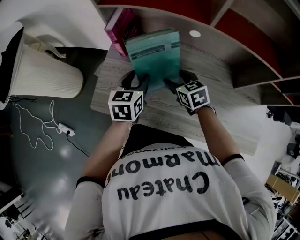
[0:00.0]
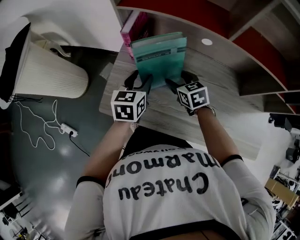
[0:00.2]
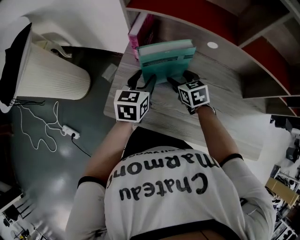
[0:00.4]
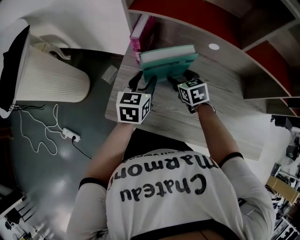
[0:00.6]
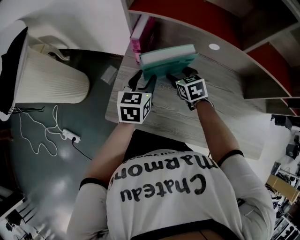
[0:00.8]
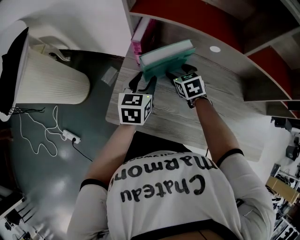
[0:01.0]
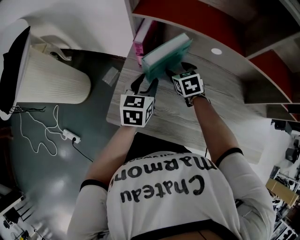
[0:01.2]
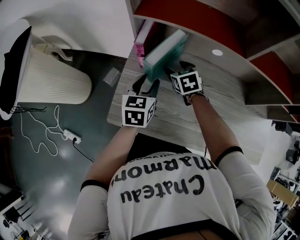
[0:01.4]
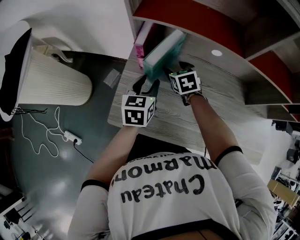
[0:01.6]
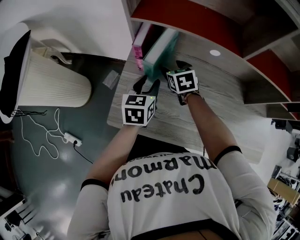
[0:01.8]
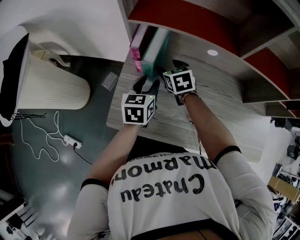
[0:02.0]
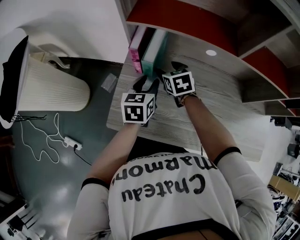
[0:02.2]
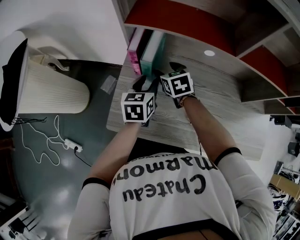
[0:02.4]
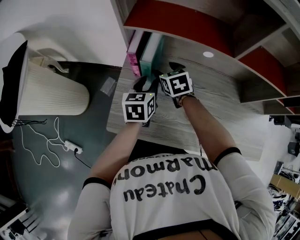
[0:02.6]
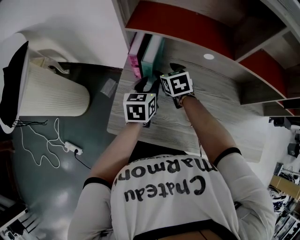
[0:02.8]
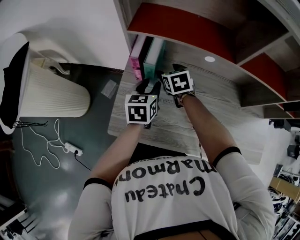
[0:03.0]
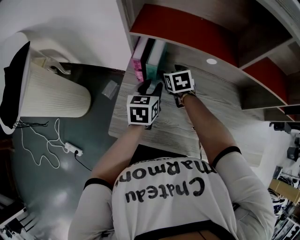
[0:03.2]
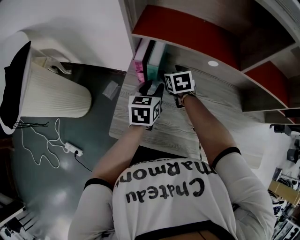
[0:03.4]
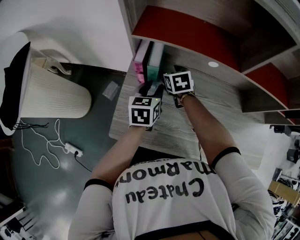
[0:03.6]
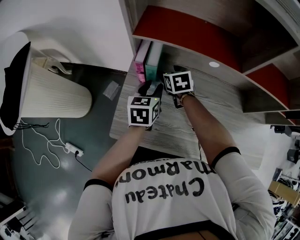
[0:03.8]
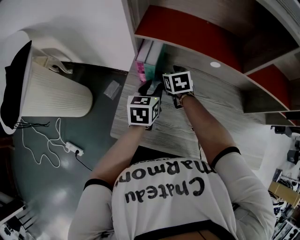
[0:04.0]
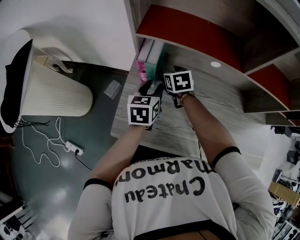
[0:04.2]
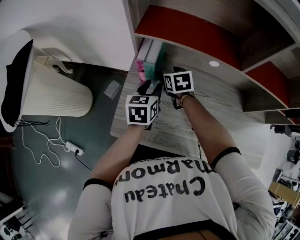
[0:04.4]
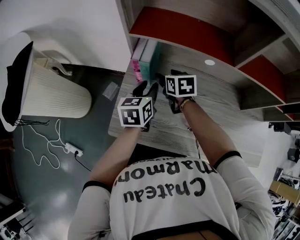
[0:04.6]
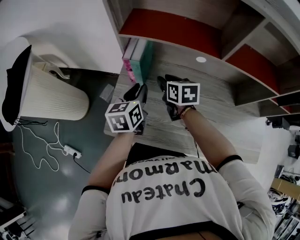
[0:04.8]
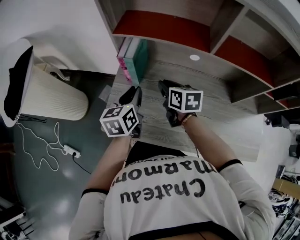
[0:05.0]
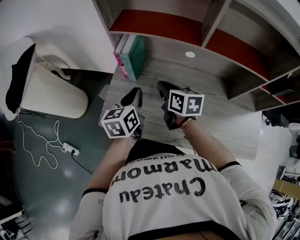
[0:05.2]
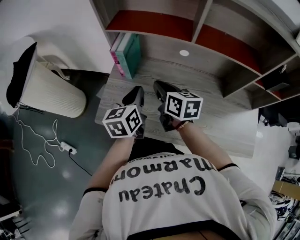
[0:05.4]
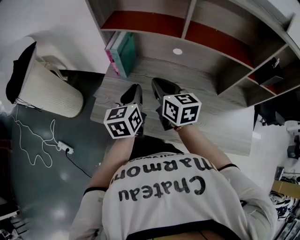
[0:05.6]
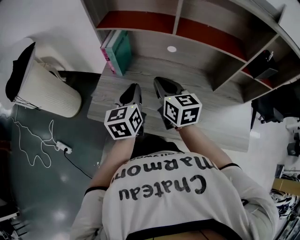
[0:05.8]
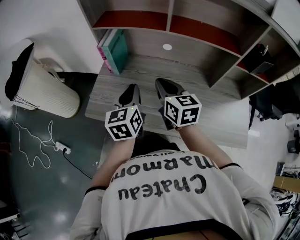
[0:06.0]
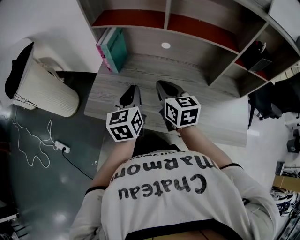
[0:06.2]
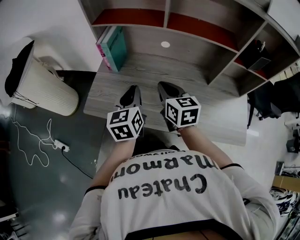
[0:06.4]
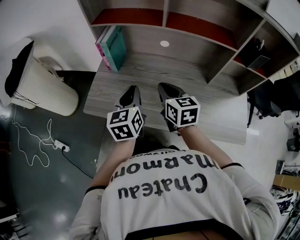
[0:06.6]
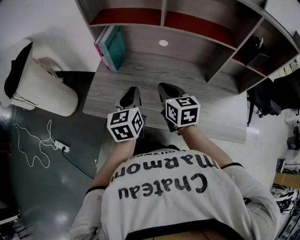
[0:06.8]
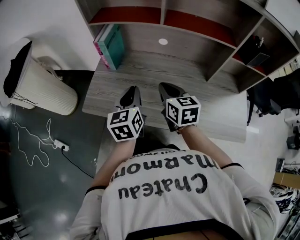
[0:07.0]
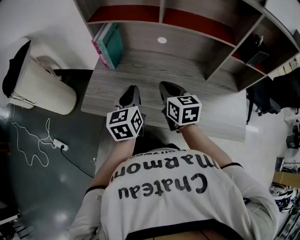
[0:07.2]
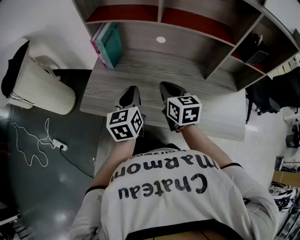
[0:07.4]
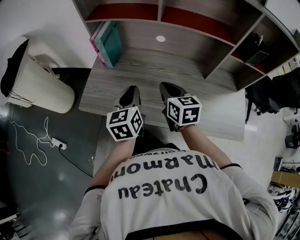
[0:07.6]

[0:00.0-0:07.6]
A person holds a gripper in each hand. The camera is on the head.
0:00.0 to 0:01.6: The right gripper moves forward and to the left, about 15 cm. The left gripper moves forward and to the left, roughly 10 cm.
0:01.6 to 0:04.6: The grippers stay close to where they were, moving slightly.
0:04.6 to 0:06.0: The grippers both shift backward, upward and to the right by approximately 25 cm. The left gripper closes up; the right gripper turns by approximately 30 degrees, and closes.
0:06.0 to 0:07.6: The left gripper moves approximately 5 cm. The right gripper shifts some 5 cm downward.

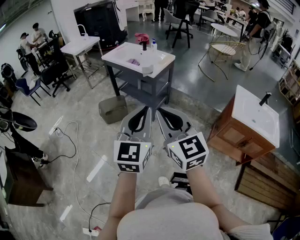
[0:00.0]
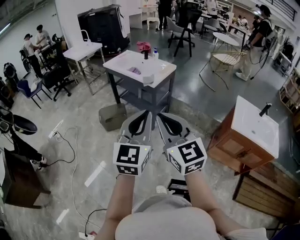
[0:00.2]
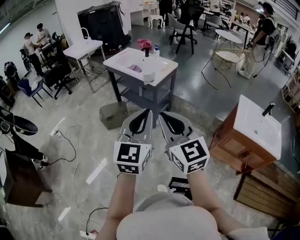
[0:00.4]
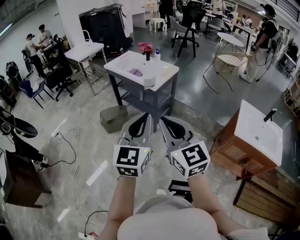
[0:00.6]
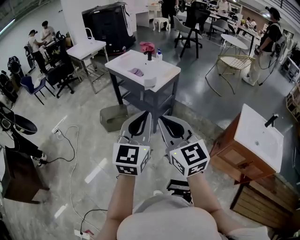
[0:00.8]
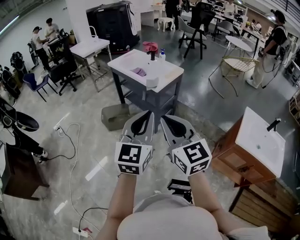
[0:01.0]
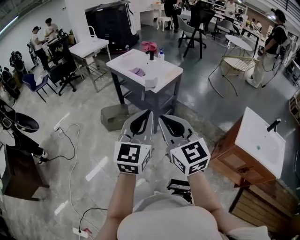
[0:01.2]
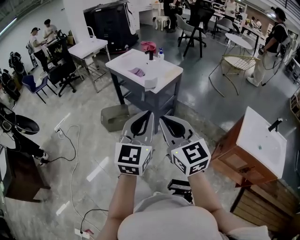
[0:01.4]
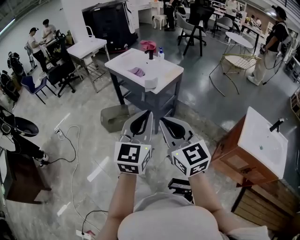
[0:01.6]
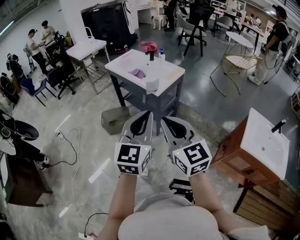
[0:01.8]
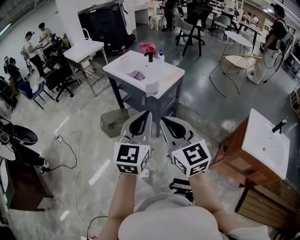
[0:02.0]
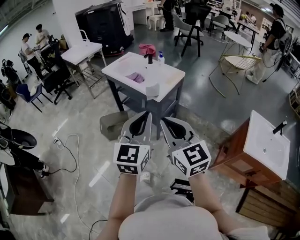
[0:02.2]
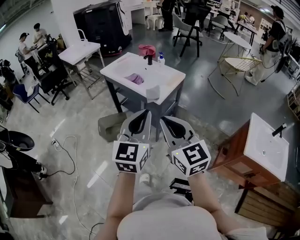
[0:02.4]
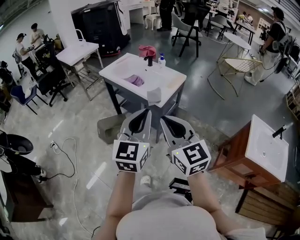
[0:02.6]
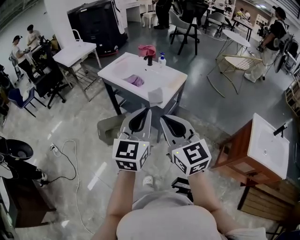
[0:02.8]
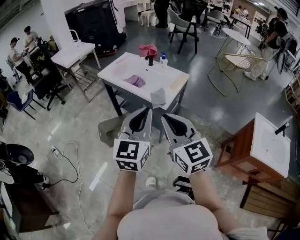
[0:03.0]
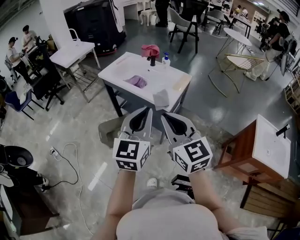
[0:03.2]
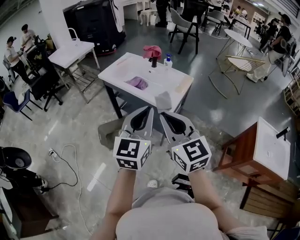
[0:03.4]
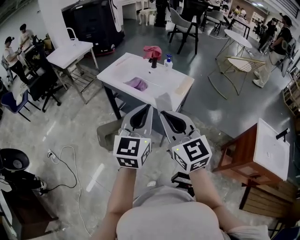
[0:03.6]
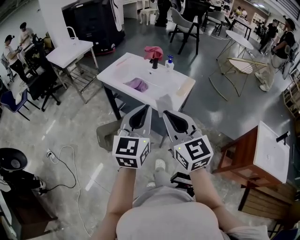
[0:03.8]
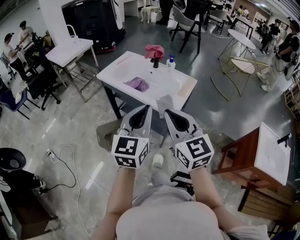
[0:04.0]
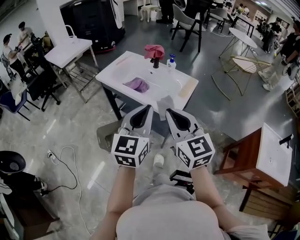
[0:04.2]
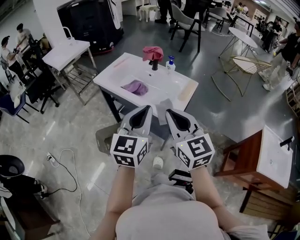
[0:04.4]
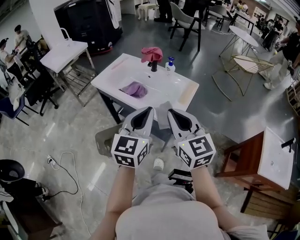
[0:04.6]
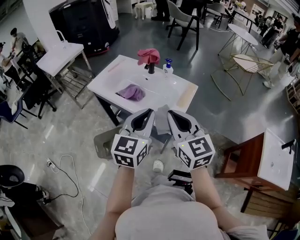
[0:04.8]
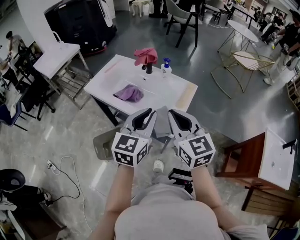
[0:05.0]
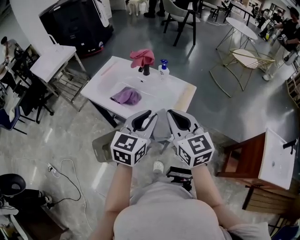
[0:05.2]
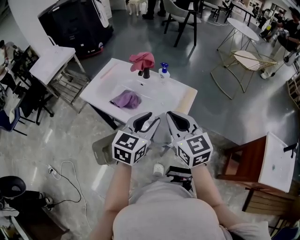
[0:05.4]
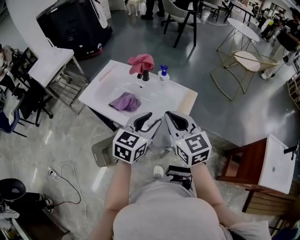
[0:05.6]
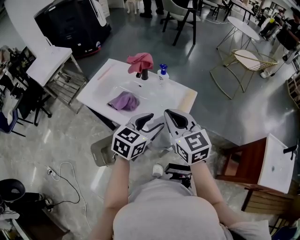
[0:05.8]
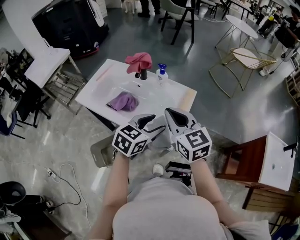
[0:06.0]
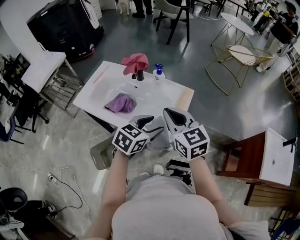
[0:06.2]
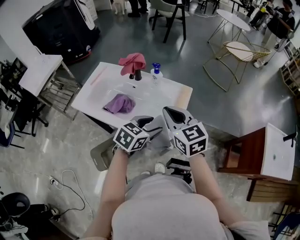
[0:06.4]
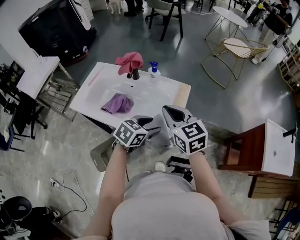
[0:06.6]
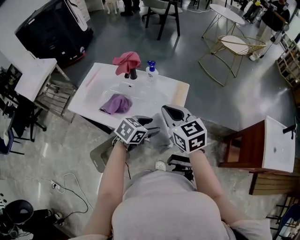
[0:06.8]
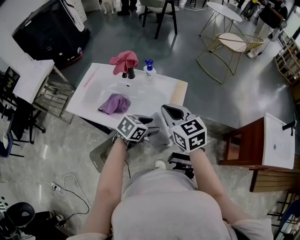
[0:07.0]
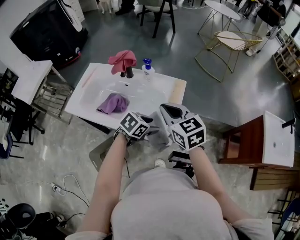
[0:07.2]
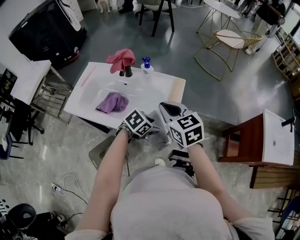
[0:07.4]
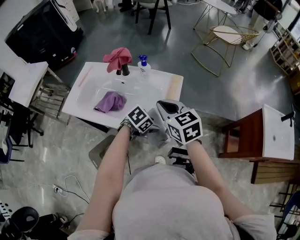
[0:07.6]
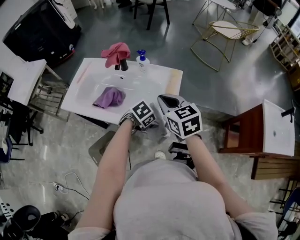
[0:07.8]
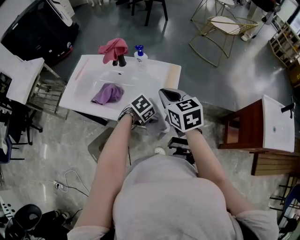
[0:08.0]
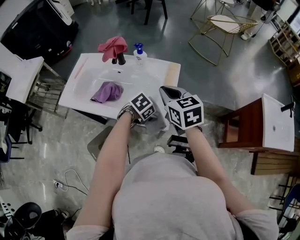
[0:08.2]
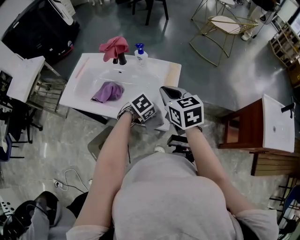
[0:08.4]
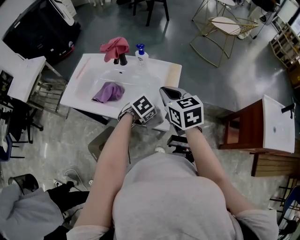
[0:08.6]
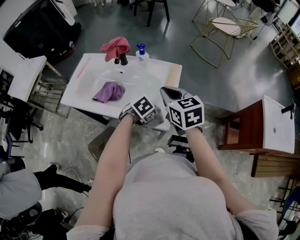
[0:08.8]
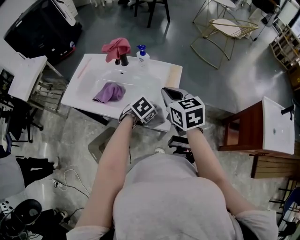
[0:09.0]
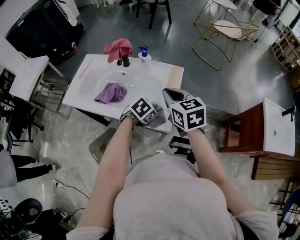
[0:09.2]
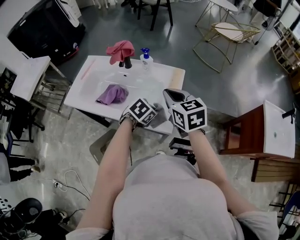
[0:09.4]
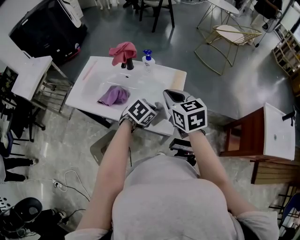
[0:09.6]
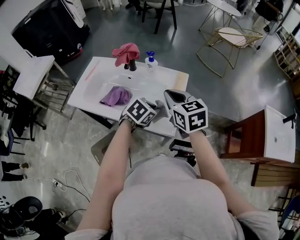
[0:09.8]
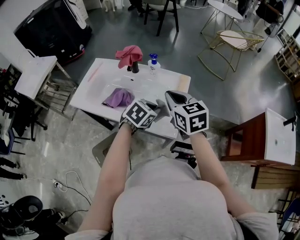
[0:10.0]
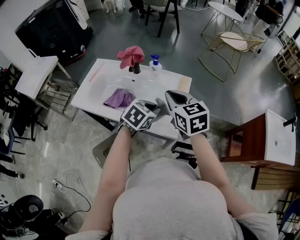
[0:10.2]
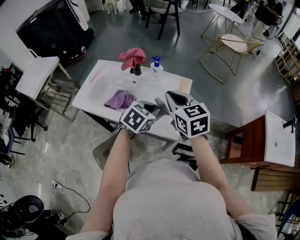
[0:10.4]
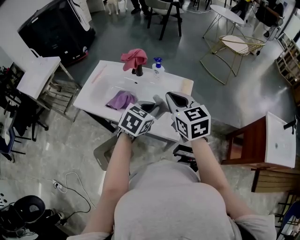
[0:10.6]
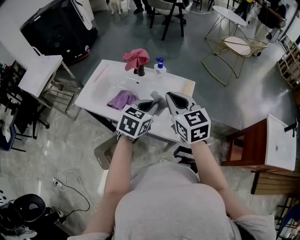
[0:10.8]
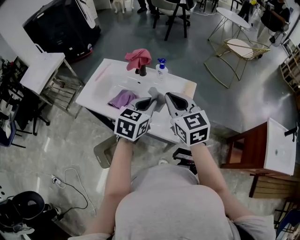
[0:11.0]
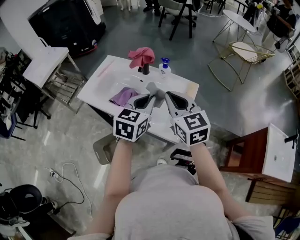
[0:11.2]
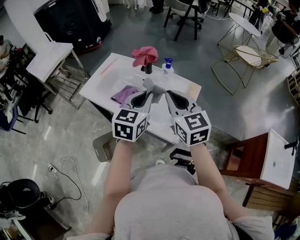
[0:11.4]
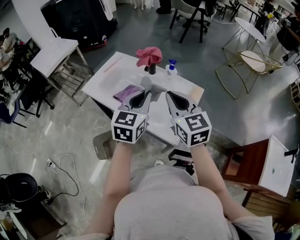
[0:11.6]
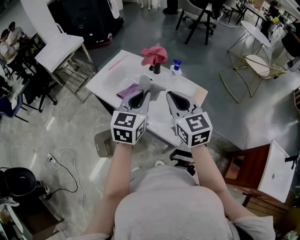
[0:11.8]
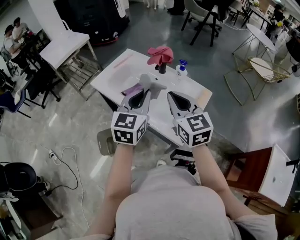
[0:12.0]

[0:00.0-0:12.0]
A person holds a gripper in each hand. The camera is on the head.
0:00.0 to 0:01.6: Both grippers travel together forward and to the right, some 15 cm.
0:01.6 to 0:03.0: The grippers both shift forward and to the left by some 20 cm.
0:03.0 to 0:04.4: The two grippers go roughly 15 cm forward.
0:04.4 to 0:06.0: The right gripper moves forward, about 20 cm; the left gripper travels forward, downward and to the right by approximately 25 cm, turns by approximately 40 degrees, and opens up.
0:06.0 to 0:07.6: The right gripper moves downward, roughly 5 cm. The left gripper heads downward, covering about 15 cm, and changes its angle by some 40 degrees.
0:07.6 to 0:09.0: The left gripper closes up.
0:09.0 to 0:10.4: The right gripper travels upward by roughly 5 cm. Meanwhile the left gripper heads upward and to the left, covering roughly 15 cm, and turns by some 30 degrees.
0:10.4 to 0:12.0: The left gripper moves upward, some 15 cm, and angles its fingers upward, by about 30 degrees; the right gripper shifts by about 5 cm.

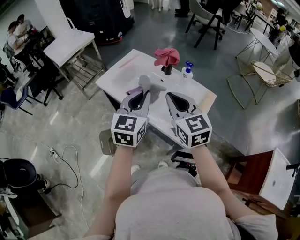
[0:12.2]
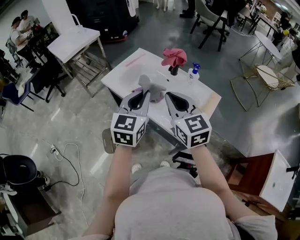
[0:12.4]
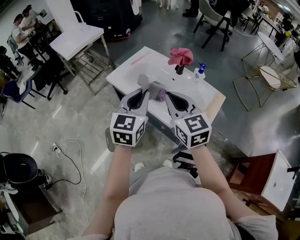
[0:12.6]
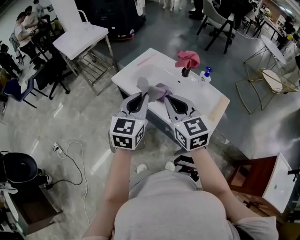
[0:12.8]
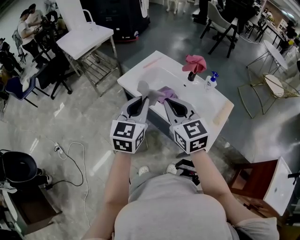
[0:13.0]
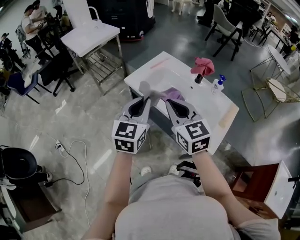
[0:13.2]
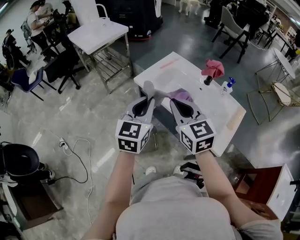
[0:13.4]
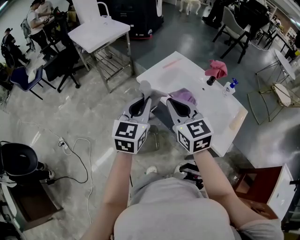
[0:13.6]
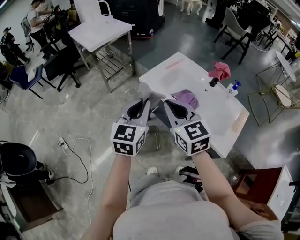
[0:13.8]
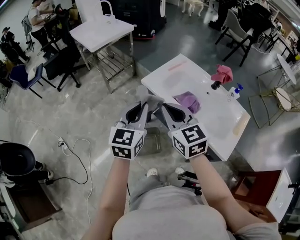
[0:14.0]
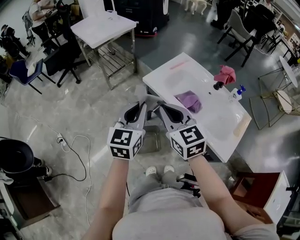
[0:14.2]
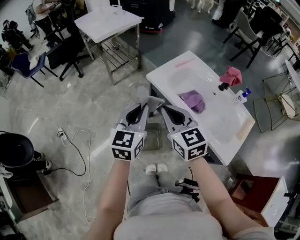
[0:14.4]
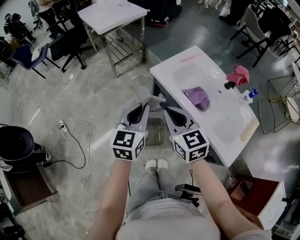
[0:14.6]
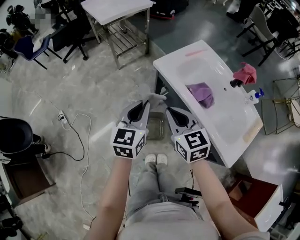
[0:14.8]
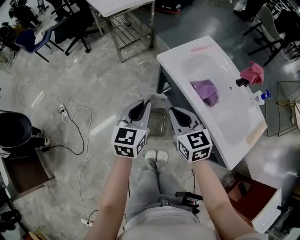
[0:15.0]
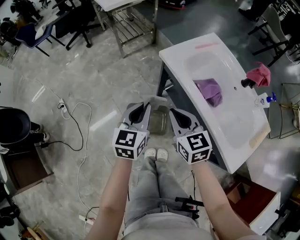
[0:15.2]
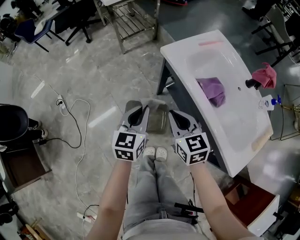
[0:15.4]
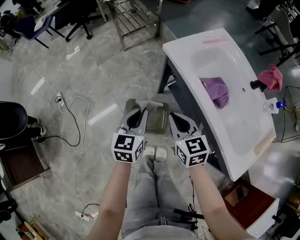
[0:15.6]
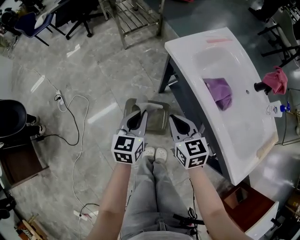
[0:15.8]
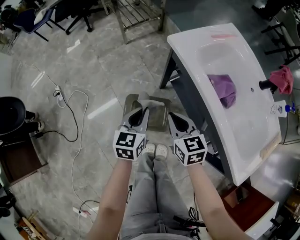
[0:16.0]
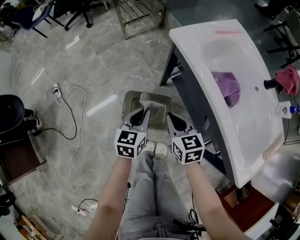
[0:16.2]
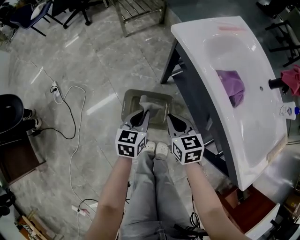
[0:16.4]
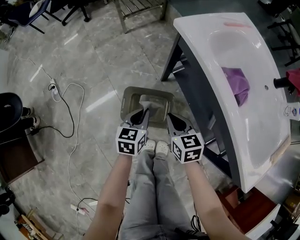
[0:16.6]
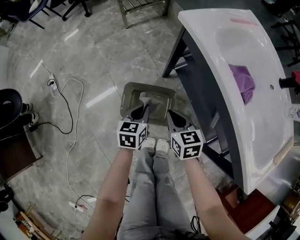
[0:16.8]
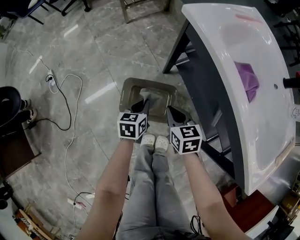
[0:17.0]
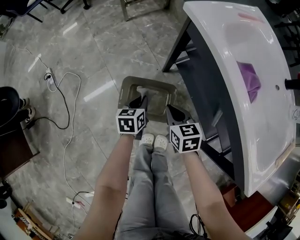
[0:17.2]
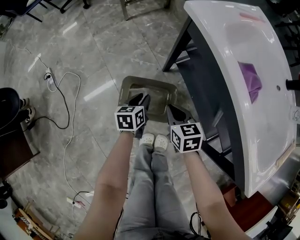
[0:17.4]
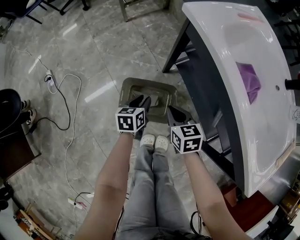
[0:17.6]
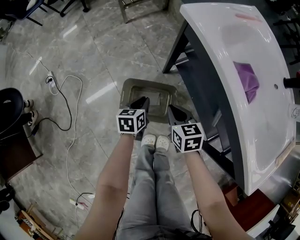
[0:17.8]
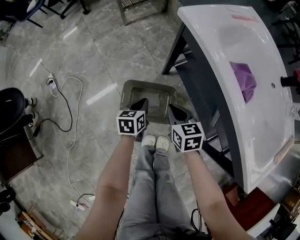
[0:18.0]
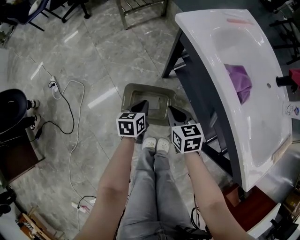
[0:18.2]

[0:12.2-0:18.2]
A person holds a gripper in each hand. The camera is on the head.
0:12.2 to 0:13.8: Both grippers travel together to the left, roughly 30 cm.
0:13.8 to 0:15.2: Both grippers move downward, approximately 15 cm.
0:15.2 to 0:16.6: The grippers both shift downward by some 25 cm.
0:16.6 to 0:18.2: The left gripper shifts approximately 5 cm downward.
